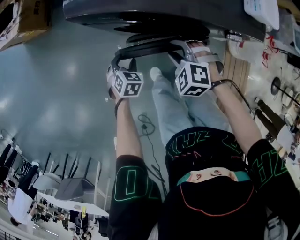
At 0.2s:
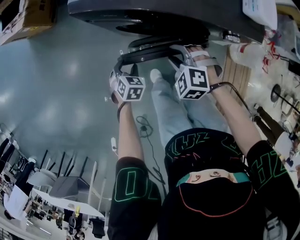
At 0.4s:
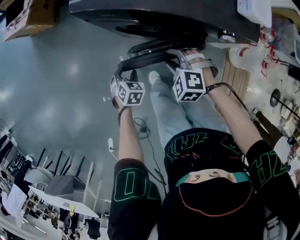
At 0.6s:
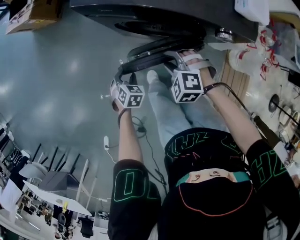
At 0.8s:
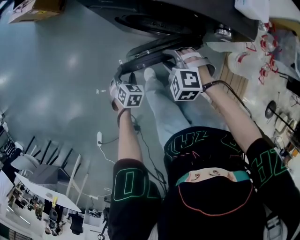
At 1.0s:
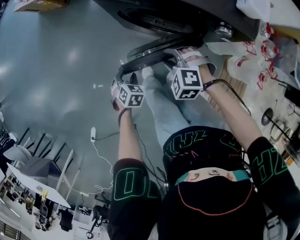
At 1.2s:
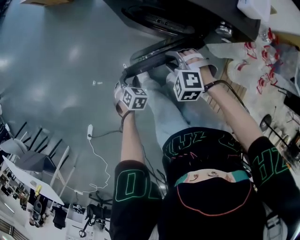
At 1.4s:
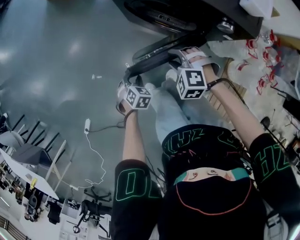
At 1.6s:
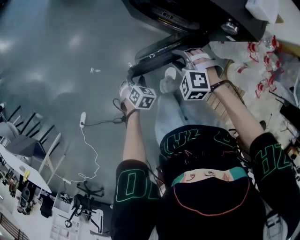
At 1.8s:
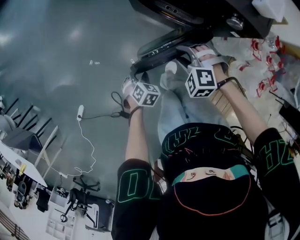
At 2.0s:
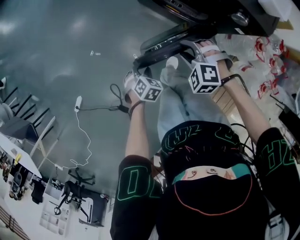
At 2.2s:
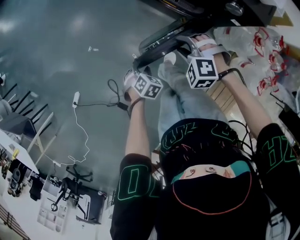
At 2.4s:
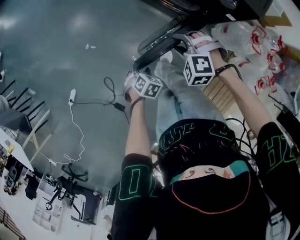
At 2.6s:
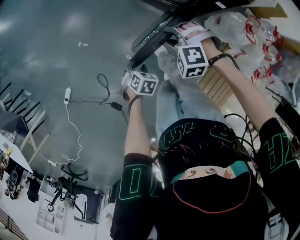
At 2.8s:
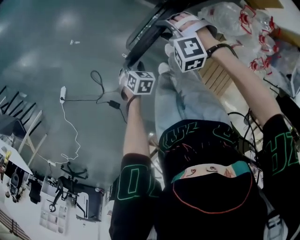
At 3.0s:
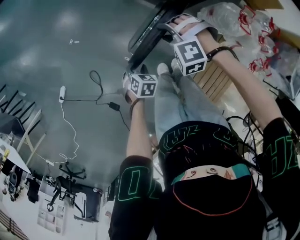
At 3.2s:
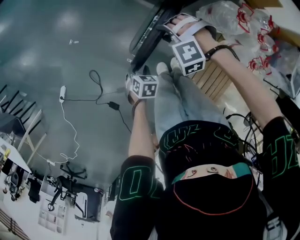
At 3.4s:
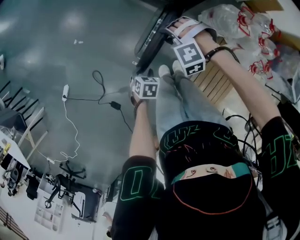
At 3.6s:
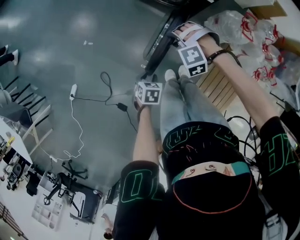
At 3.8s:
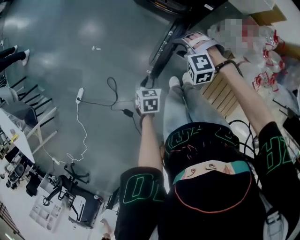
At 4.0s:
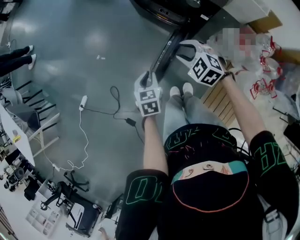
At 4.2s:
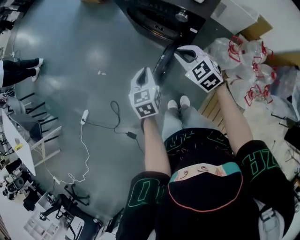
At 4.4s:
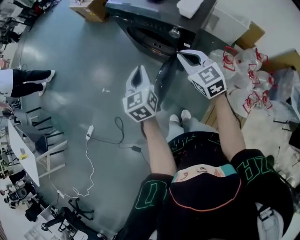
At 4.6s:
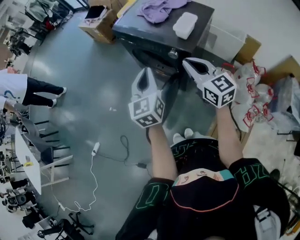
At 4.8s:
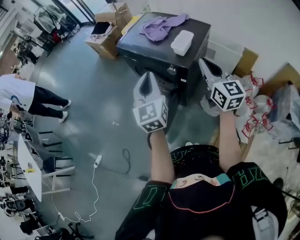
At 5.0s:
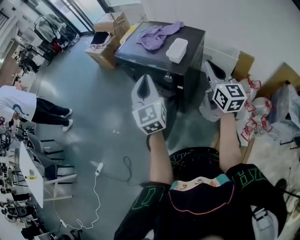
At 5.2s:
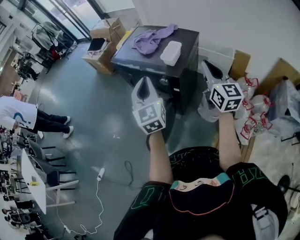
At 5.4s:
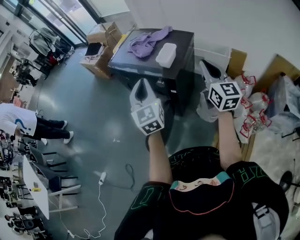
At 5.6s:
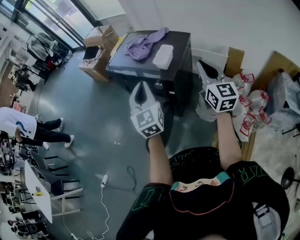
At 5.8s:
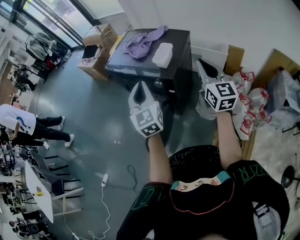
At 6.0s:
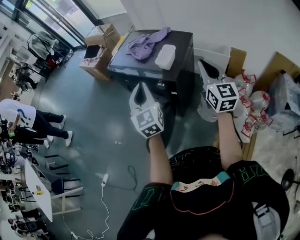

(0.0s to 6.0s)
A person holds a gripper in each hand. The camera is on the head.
0.0s - 1.6s: The right gripper shifts by approximately 15 cm, and swivels about 30 degrees; the left gripper moves about 30 cm.
1.6s - 3.0s: The right gripper moves backward, approximately 10 cm, and changes its angle by approximately 30 degrees, while the left gripper travels backward by approximately 20 cm, and rotates some 20 degrees.
3.0s - 4.4s: The left gripper goes about 35 cm upward, tips its fingers upward by some 50 degrees, and closes, while the right gripper heads upward and to the right, covering approximately 25 cm, twists about 60 degrees clockwise, seen from behind, and closes its fingers.
4.4s - 6.0s: The right gripper is displaced to the right and upward by some 30 cm, and swivels some 40 degrees. Meanwhile the left gripper heads upward and to the right, covering about 20 cm, and changes its angle by some 30 degrees.

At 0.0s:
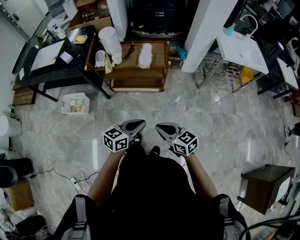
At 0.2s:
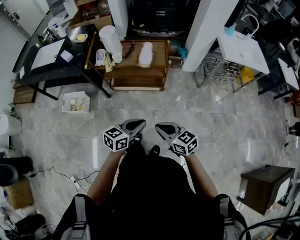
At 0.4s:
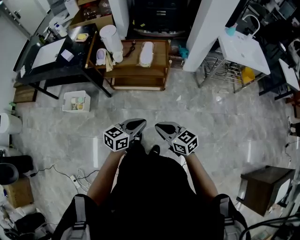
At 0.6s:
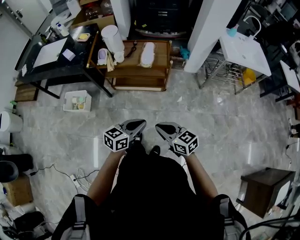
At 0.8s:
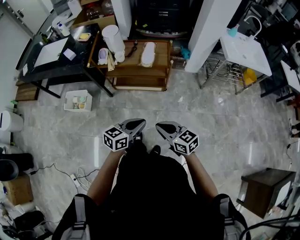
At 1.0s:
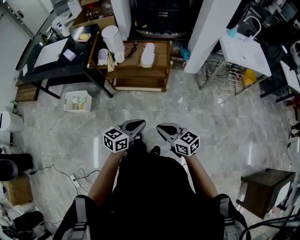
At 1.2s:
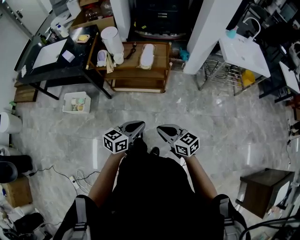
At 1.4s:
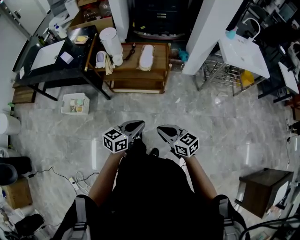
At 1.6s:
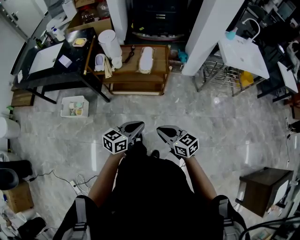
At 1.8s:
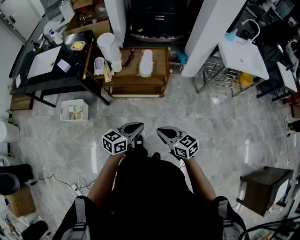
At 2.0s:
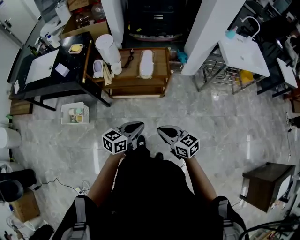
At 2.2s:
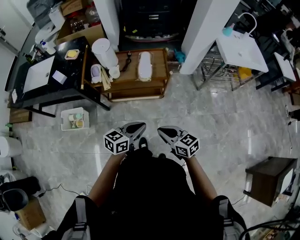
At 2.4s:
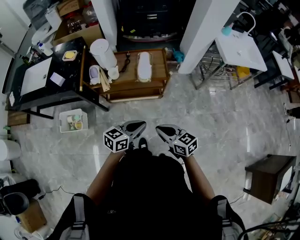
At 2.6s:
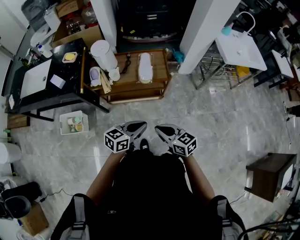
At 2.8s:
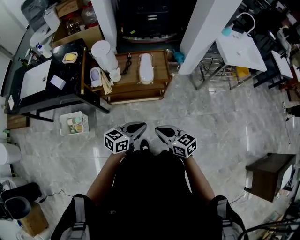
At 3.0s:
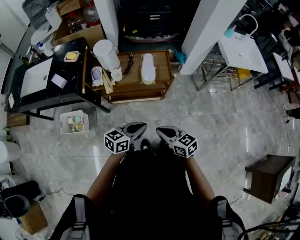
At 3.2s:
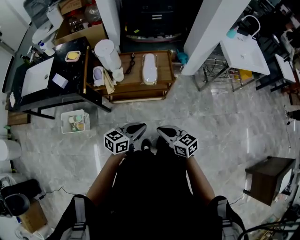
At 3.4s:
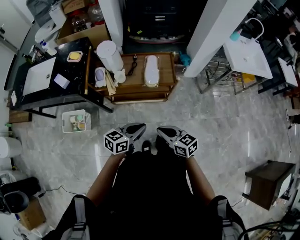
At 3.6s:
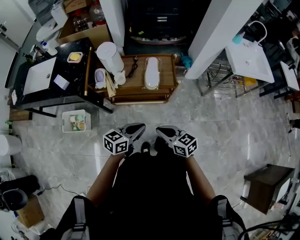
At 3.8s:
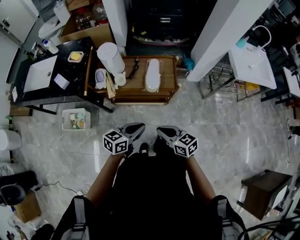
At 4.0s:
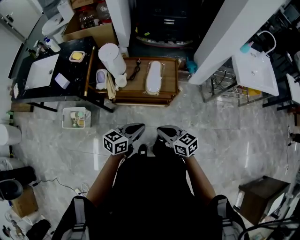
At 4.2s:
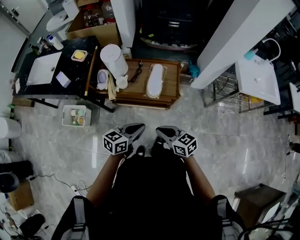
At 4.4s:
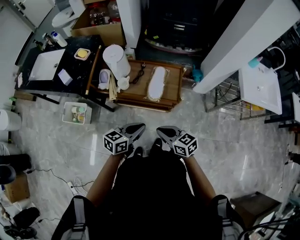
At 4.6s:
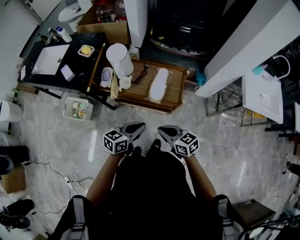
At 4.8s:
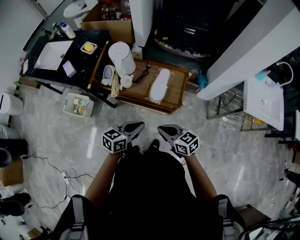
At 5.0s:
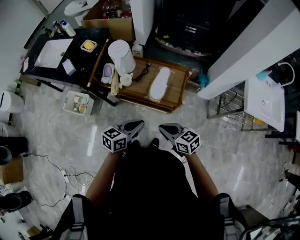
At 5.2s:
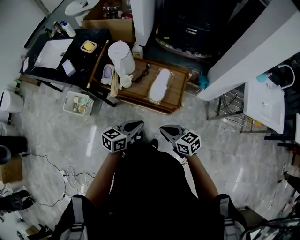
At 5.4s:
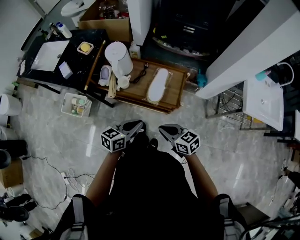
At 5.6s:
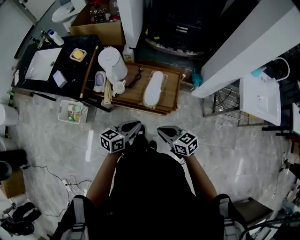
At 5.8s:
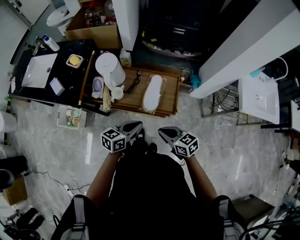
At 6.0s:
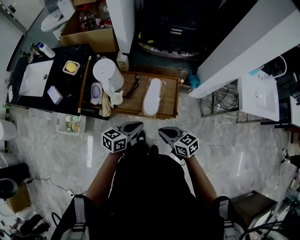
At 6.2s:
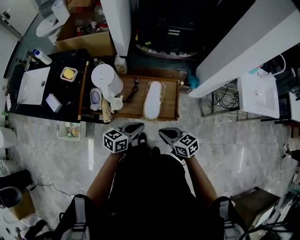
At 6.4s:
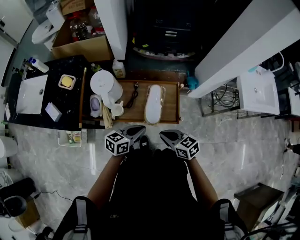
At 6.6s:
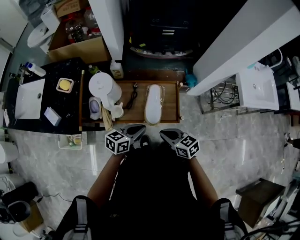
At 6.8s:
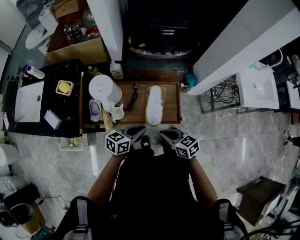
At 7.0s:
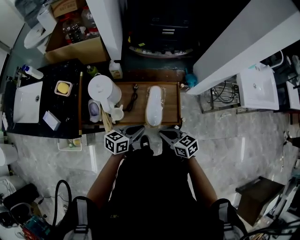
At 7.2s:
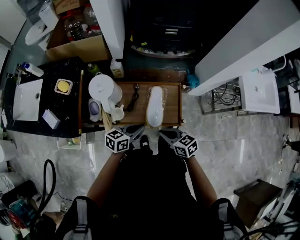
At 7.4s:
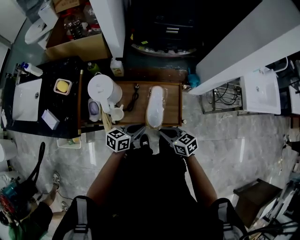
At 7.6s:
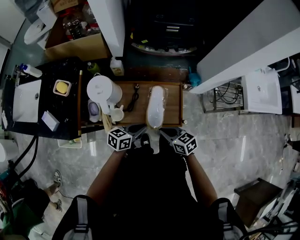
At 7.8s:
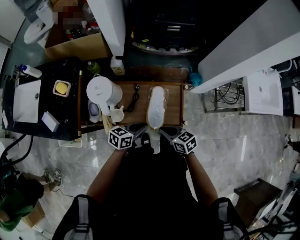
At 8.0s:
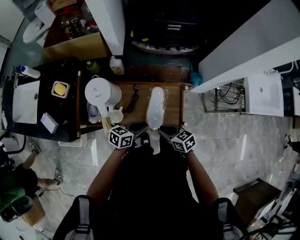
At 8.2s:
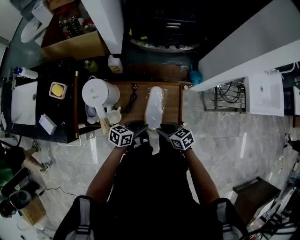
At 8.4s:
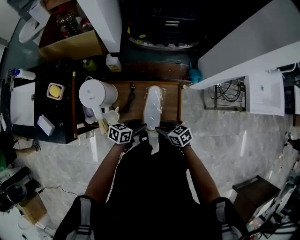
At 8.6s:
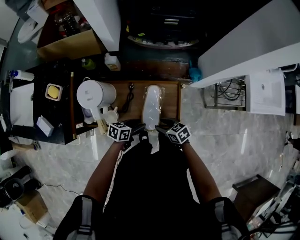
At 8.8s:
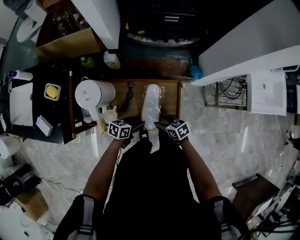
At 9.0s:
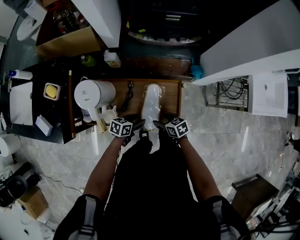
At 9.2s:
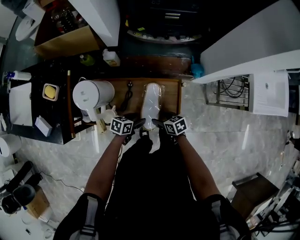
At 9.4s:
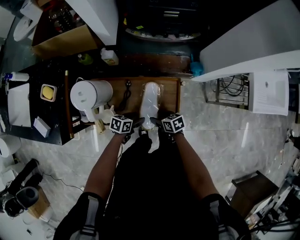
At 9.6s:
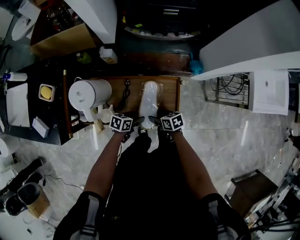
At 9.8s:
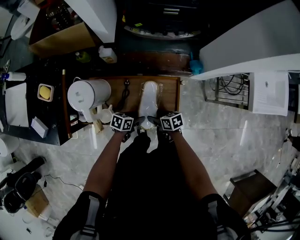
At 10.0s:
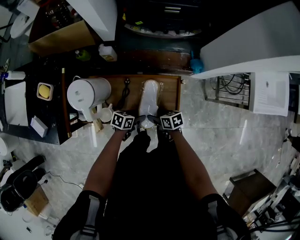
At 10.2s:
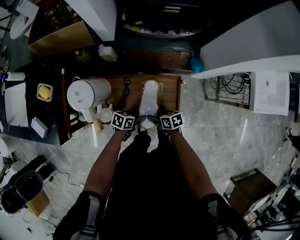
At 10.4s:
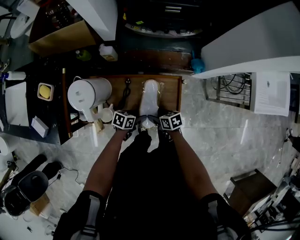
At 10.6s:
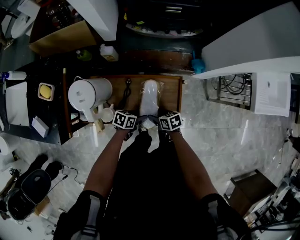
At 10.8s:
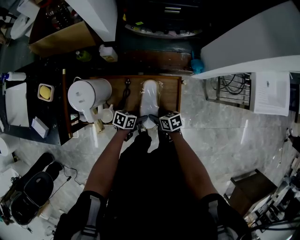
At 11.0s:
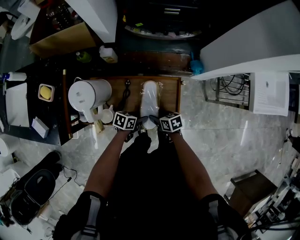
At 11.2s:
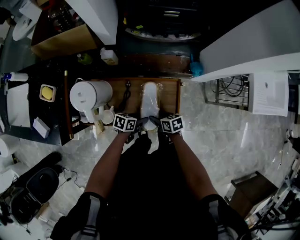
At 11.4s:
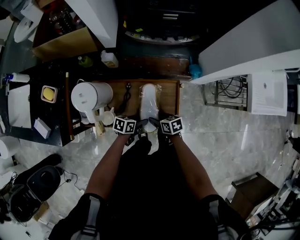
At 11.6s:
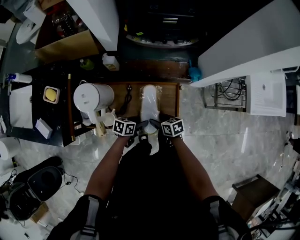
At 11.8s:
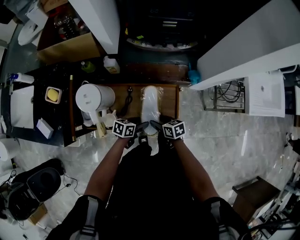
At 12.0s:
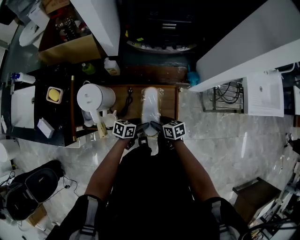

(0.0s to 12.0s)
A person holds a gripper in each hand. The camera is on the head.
0.0s - 1.6s: There are only small adjustments of the grippers.
1.6s - 3.0s: The grippers both shift forward and to the left by roughly 15 cm.
3.0s - 4.4s: The grippers both shift forward by about 15 cm.
4.4s - 6.0s: The two grippers go about 10 cm forward.
6.0s - 7.6s: Both grippers move forward and downward, about 10 cm.
7.6s - 9.0s: Both grippers travel together downward, approximately 15 cm. The right gripper opens, while the left gripper opens.
9.0s - 10.4s: The left gripper changes place by roughly 5 cm, while the right gripper changes place by approximately 5 cm.
10.4s - 12.0s: The grippers both shift upward by approximately 5 cm.

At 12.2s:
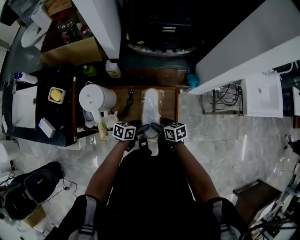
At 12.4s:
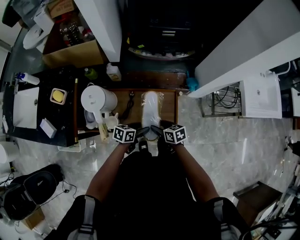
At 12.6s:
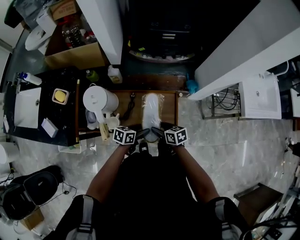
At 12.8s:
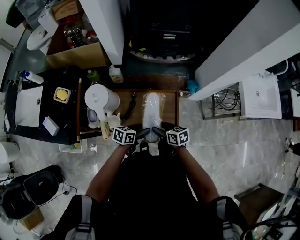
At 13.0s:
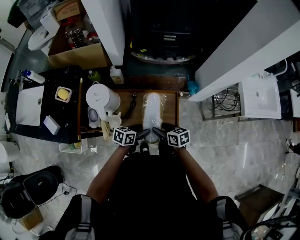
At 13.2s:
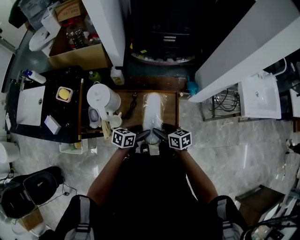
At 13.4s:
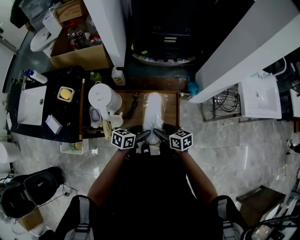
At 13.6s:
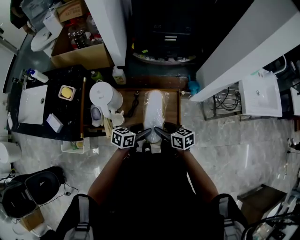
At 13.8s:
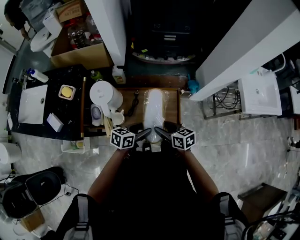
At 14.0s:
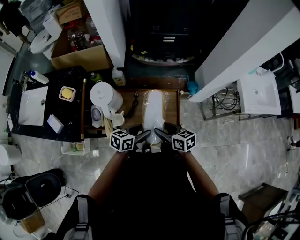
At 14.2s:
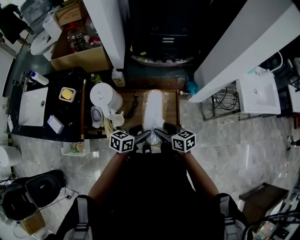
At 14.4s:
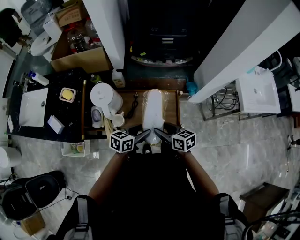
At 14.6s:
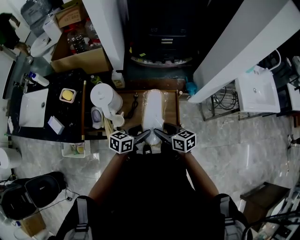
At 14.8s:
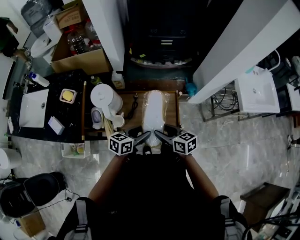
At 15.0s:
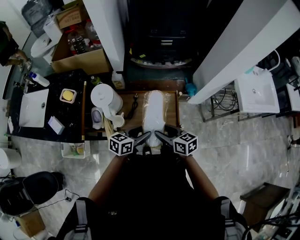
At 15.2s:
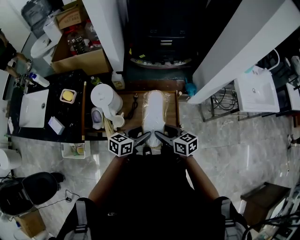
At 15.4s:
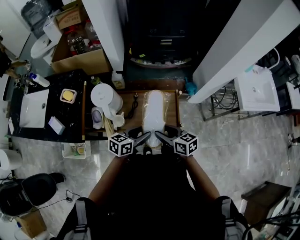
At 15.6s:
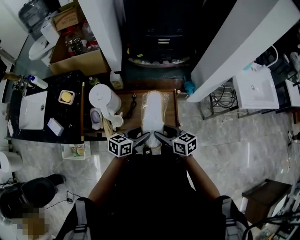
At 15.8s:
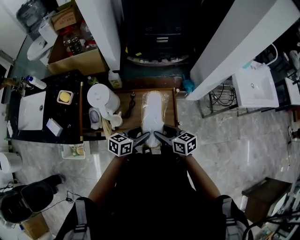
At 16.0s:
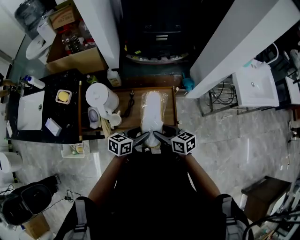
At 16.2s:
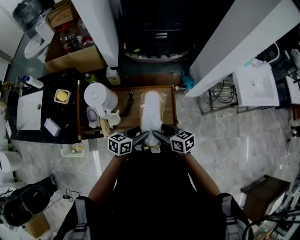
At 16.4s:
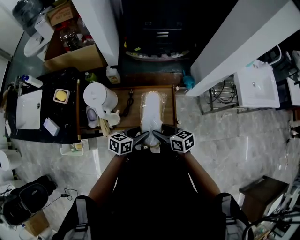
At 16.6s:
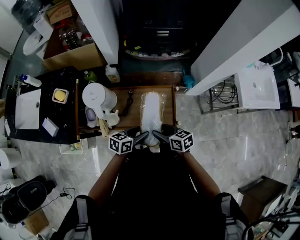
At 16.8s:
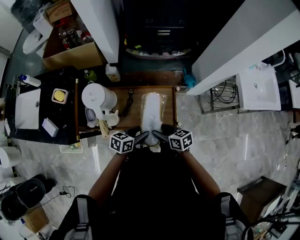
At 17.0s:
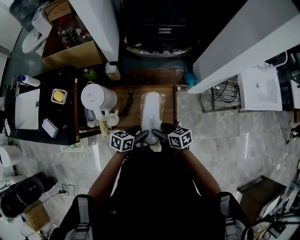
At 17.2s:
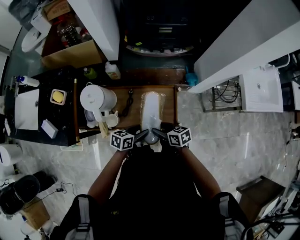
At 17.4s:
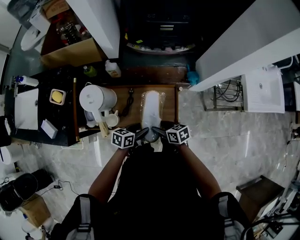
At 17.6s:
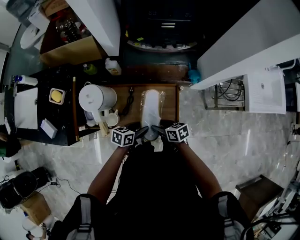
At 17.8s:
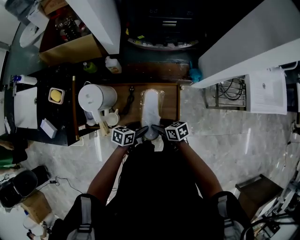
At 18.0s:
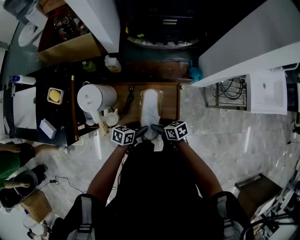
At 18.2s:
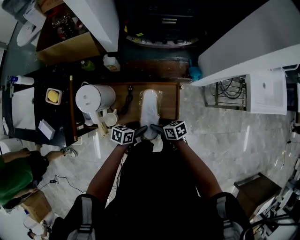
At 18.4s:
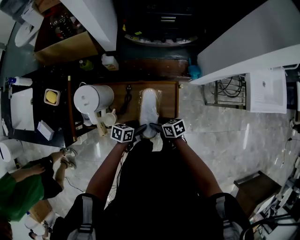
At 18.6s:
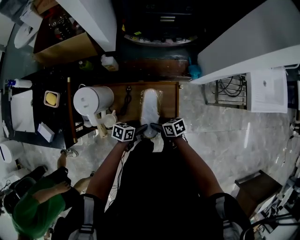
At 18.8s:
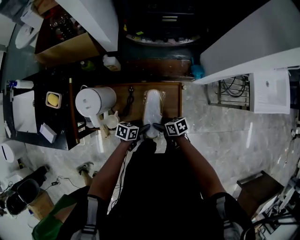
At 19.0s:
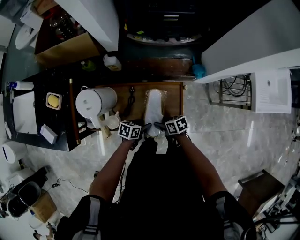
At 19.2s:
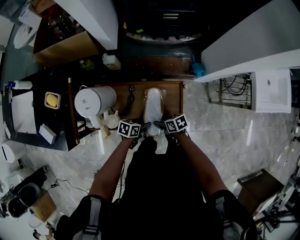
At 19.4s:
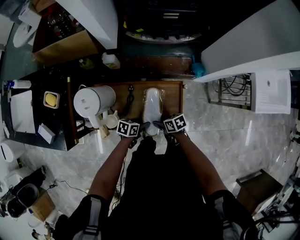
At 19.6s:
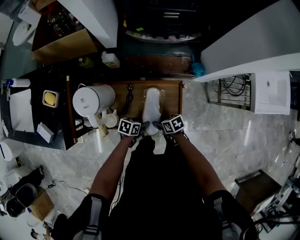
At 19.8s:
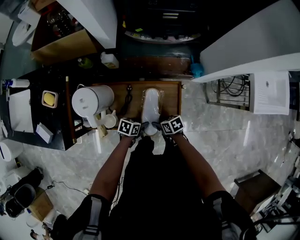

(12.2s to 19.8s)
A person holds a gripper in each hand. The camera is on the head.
12.2s - 13.8s: The right gripper heads upward and backward, covering approximately 10 cm, while the left gripper travels upward by approximately 10 cm.
13.8s - 15.2s: The right gripper ends up some 5 cm from where it was.
15.2s - 16.8s: The grippers both shift downward by approximately 5 cm.
16.8s - 18.2s: The grippers both shift downward by approximately 10 cm.
18.2s - 19.8s: The two grippers go some 10 cm downward.
